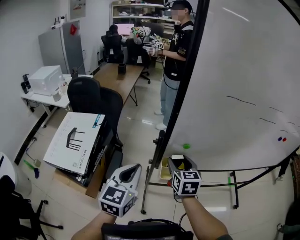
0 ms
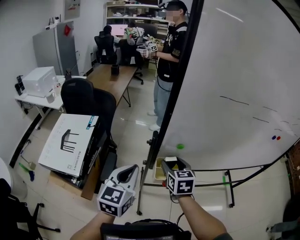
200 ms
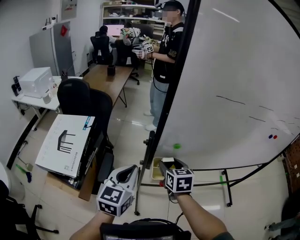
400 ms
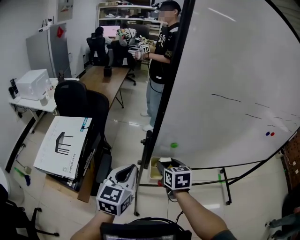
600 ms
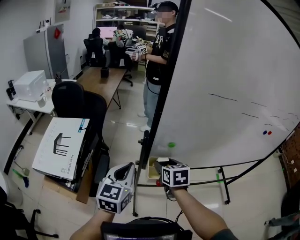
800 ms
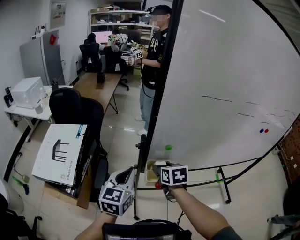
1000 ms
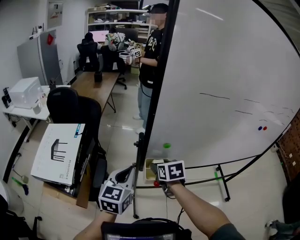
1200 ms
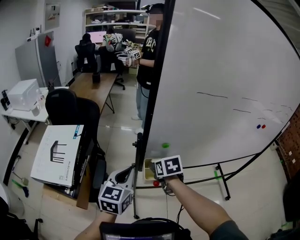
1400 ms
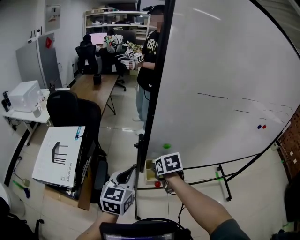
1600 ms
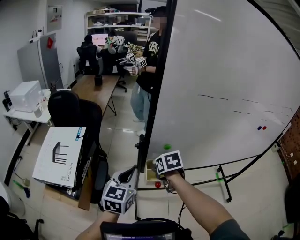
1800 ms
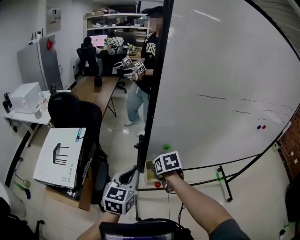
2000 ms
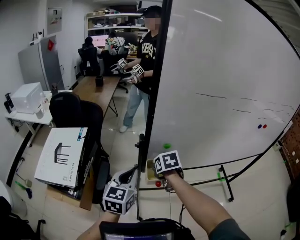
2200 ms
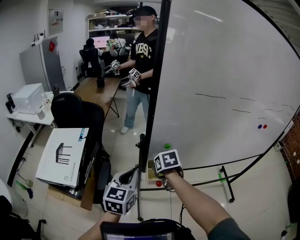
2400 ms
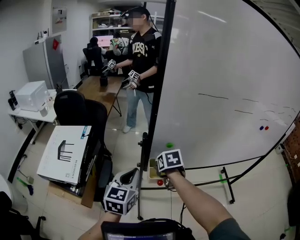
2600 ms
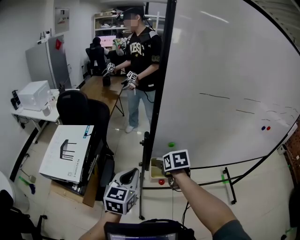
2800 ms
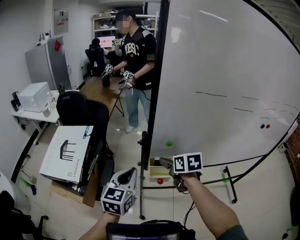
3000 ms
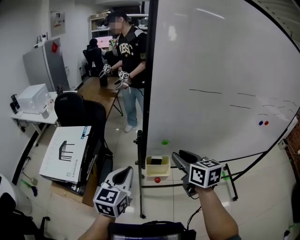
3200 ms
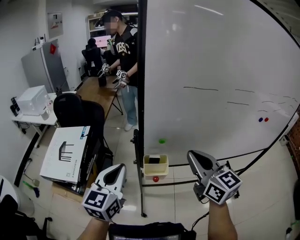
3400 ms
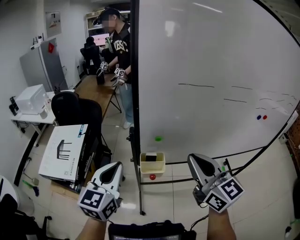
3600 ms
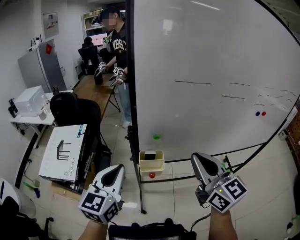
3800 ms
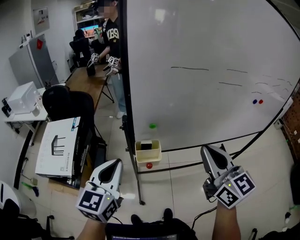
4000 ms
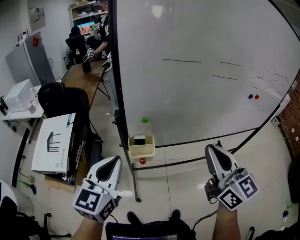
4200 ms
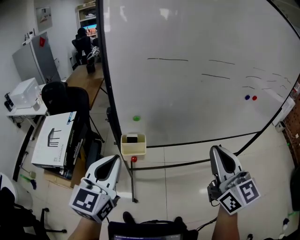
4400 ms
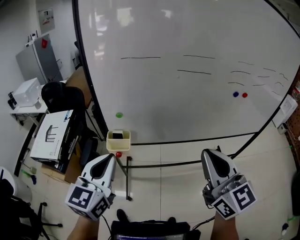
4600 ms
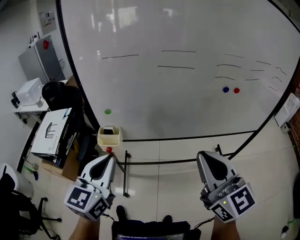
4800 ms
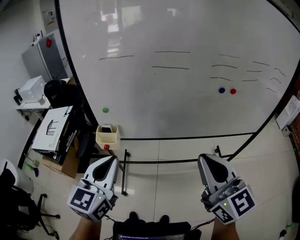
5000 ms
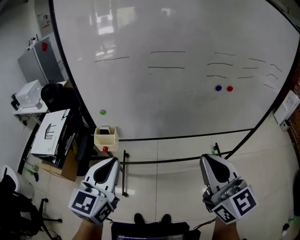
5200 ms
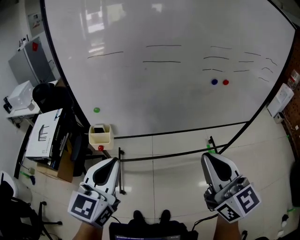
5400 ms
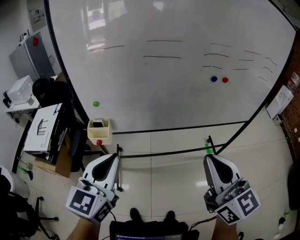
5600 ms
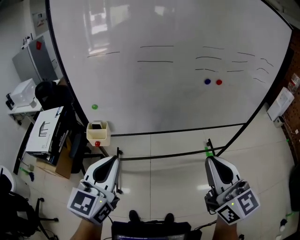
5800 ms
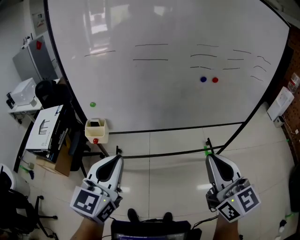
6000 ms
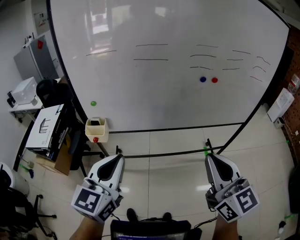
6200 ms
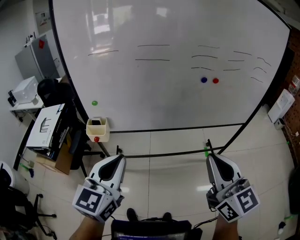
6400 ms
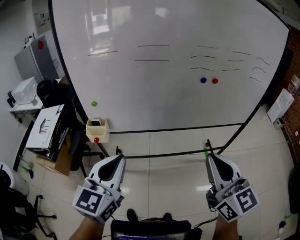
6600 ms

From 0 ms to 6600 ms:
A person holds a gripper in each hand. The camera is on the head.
From 0 ms to 1600 ms: The right gripper travels downward by approximately 5 cm, and tips its fingers downward by some 30 degrees.
From 1600 ms to 3200 ms: The left gripper shifts by approximately 5 cm, while the right gripper goes approximately 15 cm upward, and tilts its fingers about 40 degrees upward.
From 3200 ms to 5000 ms: The two grippers go approximately 40 cm to the right and backward. The right gripper turns by some 30 degrees, and closes.
From 5000 ms to 6600 ms: The two grippers go roughly 10 cm to the right and backward.

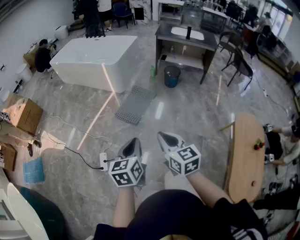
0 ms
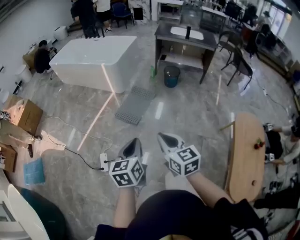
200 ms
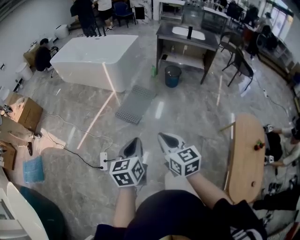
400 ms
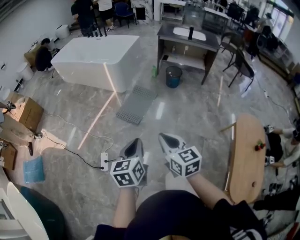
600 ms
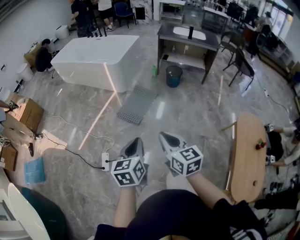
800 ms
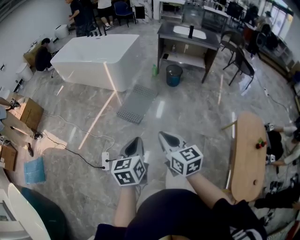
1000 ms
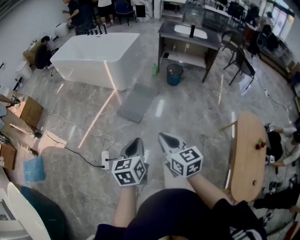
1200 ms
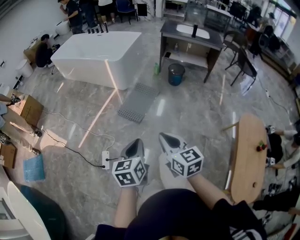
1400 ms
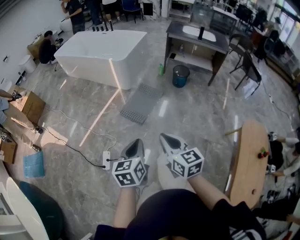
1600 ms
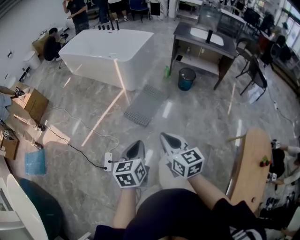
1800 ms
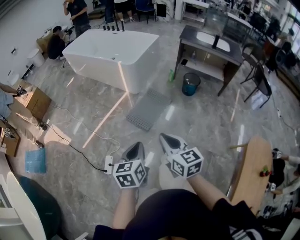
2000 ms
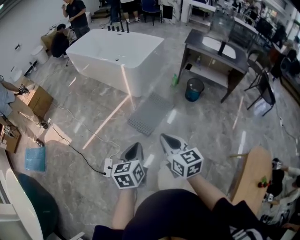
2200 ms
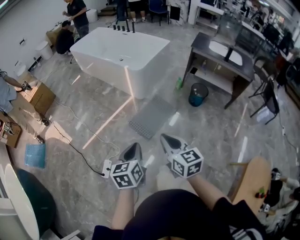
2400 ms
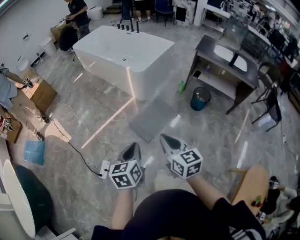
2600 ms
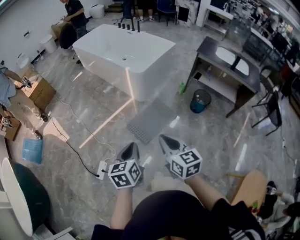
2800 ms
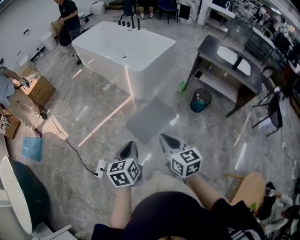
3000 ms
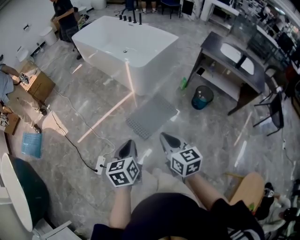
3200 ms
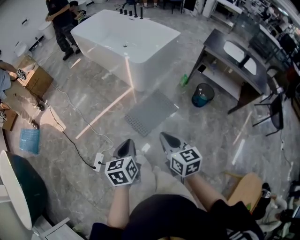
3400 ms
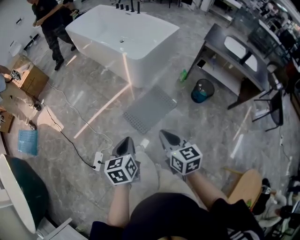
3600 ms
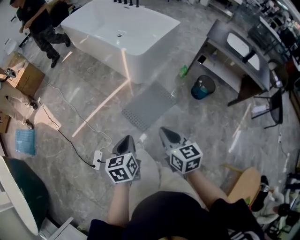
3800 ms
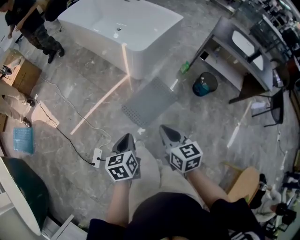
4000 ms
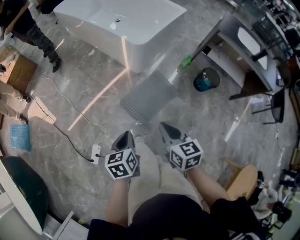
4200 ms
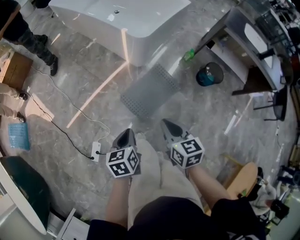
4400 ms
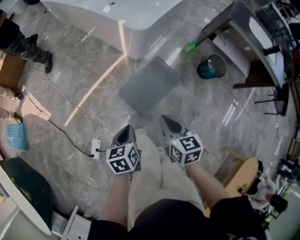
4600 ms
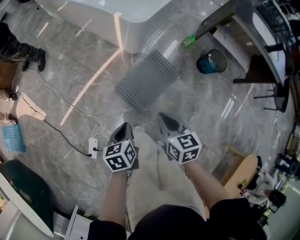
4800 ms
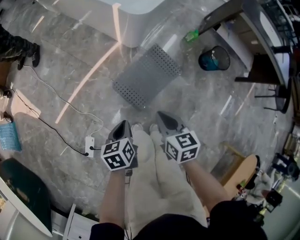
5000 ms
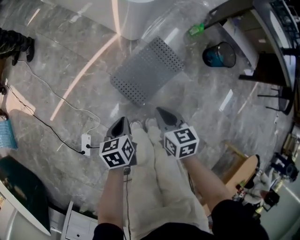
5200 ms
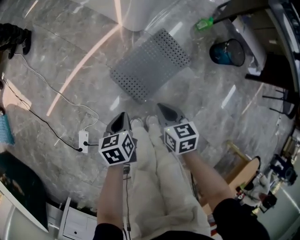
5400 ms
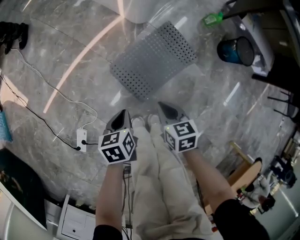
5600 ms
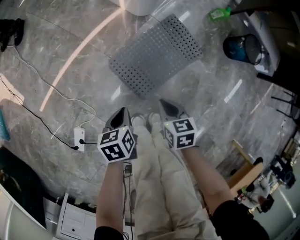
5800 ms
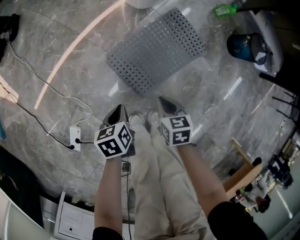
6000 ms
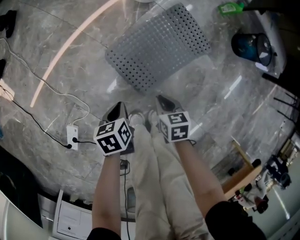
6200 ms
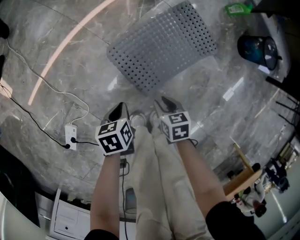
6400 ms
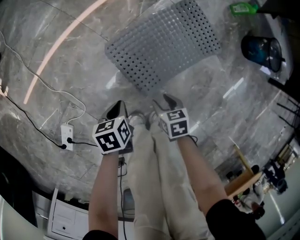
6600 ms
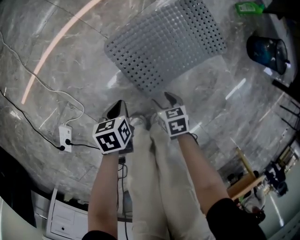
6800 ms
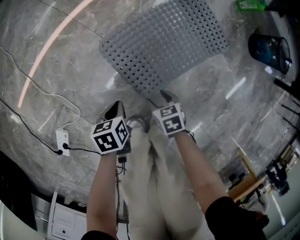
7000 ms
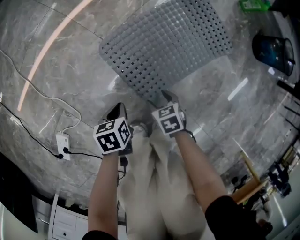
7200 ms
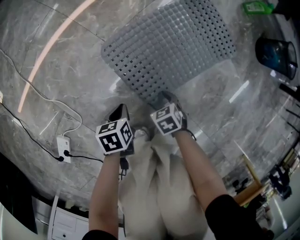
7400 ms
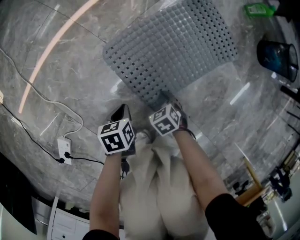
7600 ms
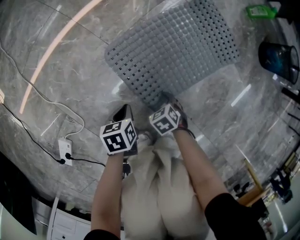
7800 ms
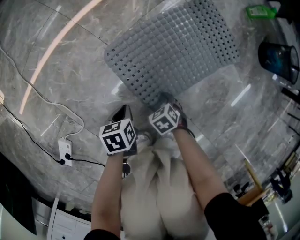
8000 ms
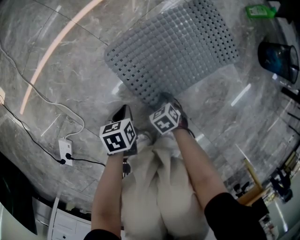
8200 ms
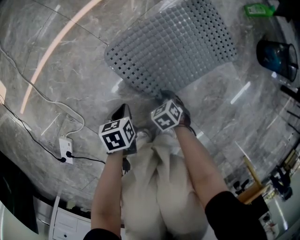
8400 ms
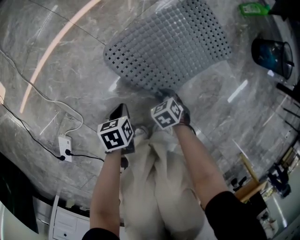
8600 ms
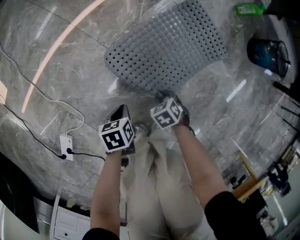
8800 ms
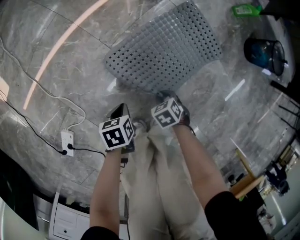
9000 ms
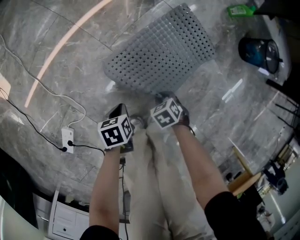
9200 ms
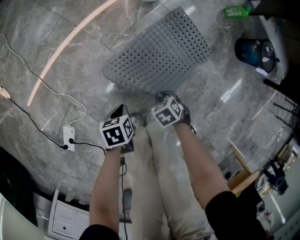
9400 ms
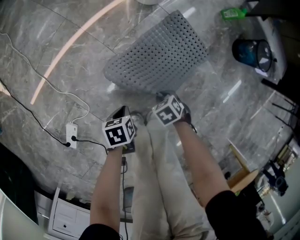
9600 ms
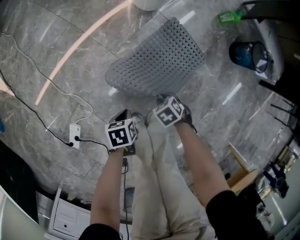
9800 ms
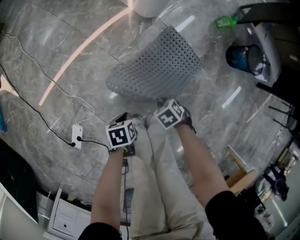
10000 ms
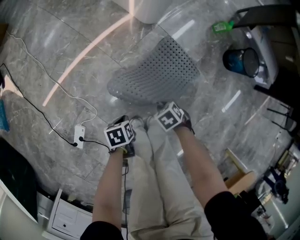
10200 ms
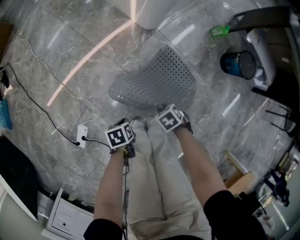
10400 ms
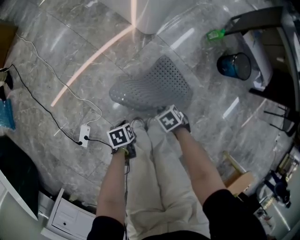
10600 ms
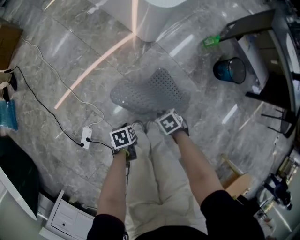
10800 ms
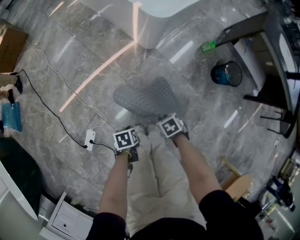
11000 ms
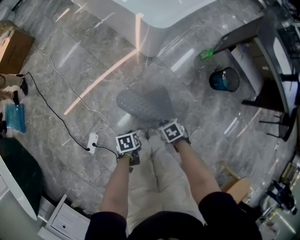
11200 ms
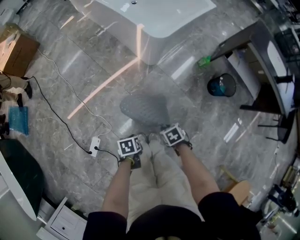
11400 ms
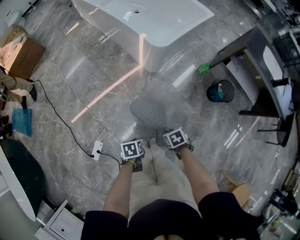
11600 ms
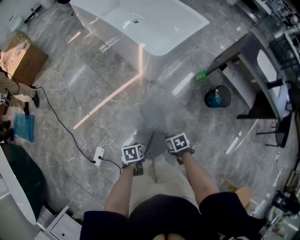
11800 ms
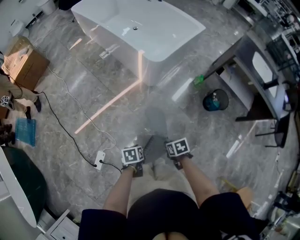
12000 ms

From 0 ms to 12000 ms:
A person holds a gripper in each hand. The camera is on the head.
From 0 ms to 1600 ms: The left gripper shifts by roughly 5 cm. Meanwhile the right gripper changes place by roughly 5 cm.
From 1600 ms to 3000 ms: Both grippers move forward, approximately 30 cm.
From 3000 ms to 4400 ms: The grippers both shift forward and downward by approximately 25 cm.
From 4400 ms to 6000 ms: The grippers both shift downward by approximately 50 cm. The right gripper turns by about 30 degrees. Meanwhile the left gripper rotates roughly 20 degrees.
From 6000 ms to 7600 ms: The grippers both shift downward by roughly 30 cm. The right gripper rotates approximately 40 degrees, and opens.
From 7600 ms to 9000 ms: The grippers both shift upward by about 10 cm. The right gripper closes its fingers.
From 9000 ms to 10400 ms: Both grippers move upward, some 25 cm.
From 10400 ms to 12000 ms: Both grippers travel together upward, some 30 cm. The right gripper swivels approximately 30 degrees.

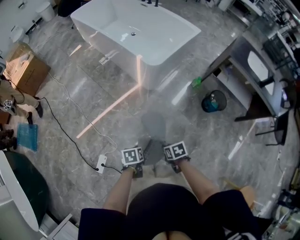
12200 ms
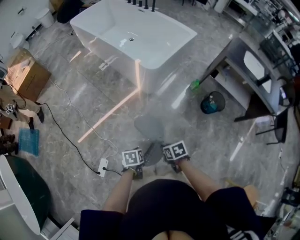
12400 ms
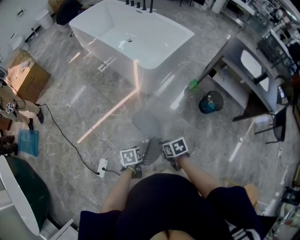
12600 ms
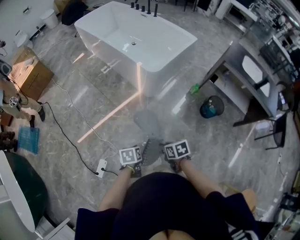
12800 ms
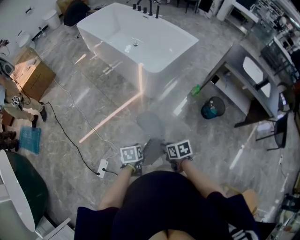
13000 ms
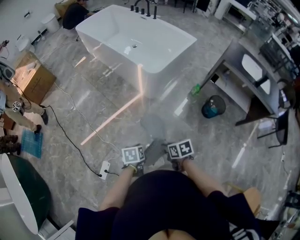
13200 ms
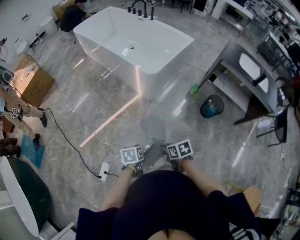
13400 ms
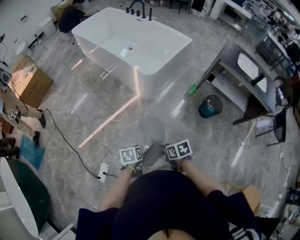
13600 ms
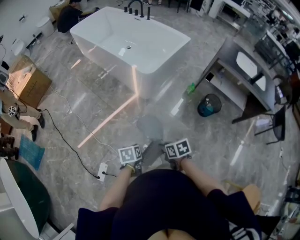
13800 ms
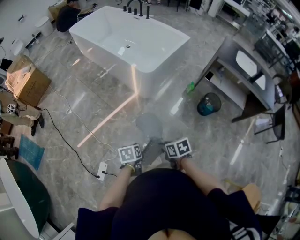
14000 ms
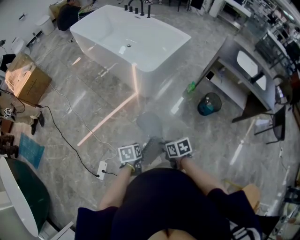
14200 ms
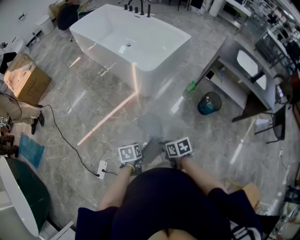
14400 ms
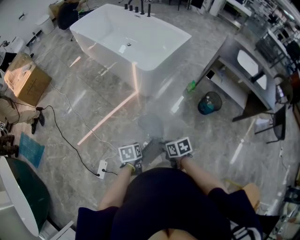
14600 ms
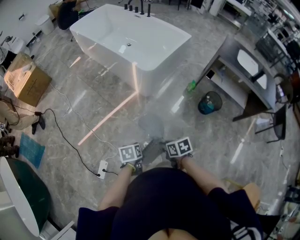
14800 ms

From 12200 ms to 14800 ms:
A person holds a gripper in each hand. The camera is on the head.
From 12200 ms to 13400 ms: The grippers both shift upward by roughly 5 cm.
From 13400 ms to 14800 ms: Both grippers stay put.

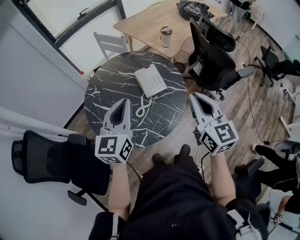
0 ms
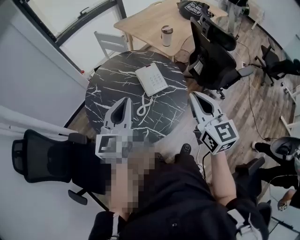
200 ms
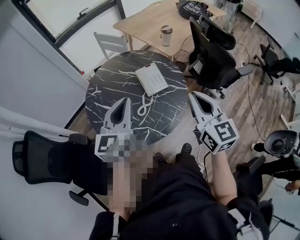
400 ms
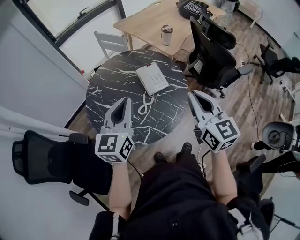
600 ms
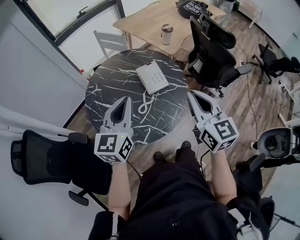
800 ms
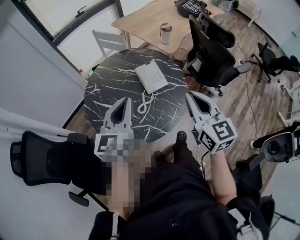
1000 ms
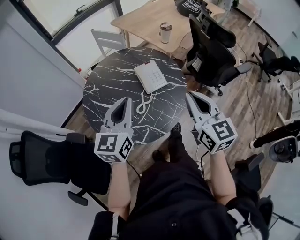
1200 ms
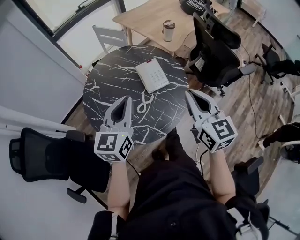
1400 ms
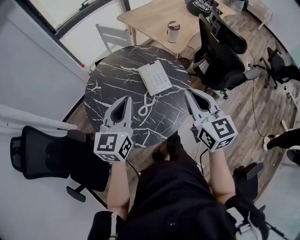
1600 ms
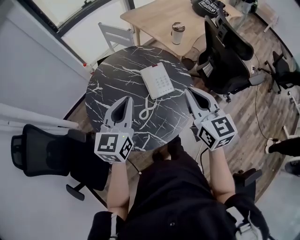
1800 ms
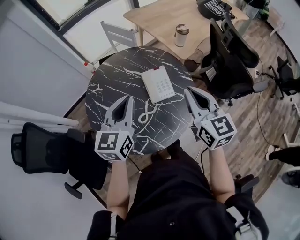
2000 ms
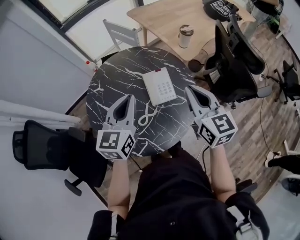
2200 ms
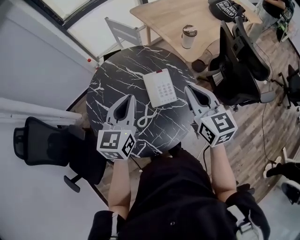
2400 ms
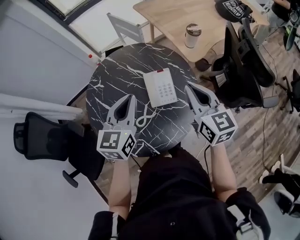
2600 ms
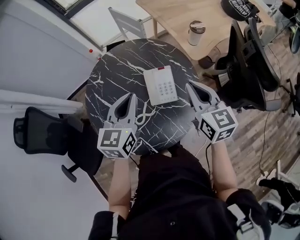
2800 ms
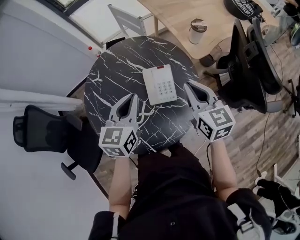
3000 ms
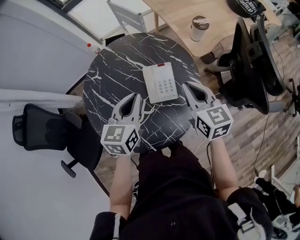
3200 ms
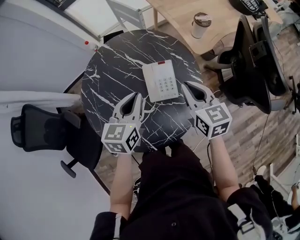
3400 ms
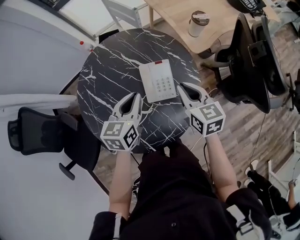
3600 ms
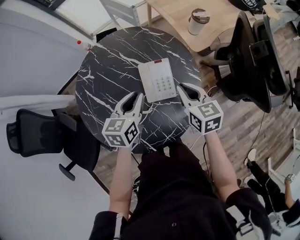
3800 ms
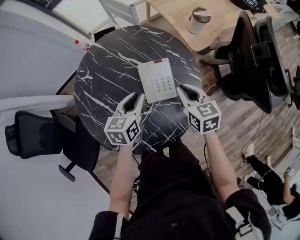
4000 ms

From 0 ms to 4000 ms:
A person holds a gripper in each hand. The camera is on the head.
From 0 ms to 1400 ms: The grippers make only small movements.
From 1400 ms to 2600 ms: Both grippers travel together forward, some 15 cm.
From 2600 ms to 4000 ms: The two grippers go about 15 cm downward. The right gripper rotates roughly 20 degrees; the left gripper turns by about 20 degrees.
